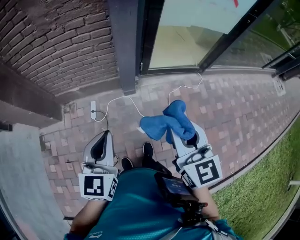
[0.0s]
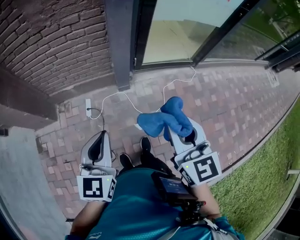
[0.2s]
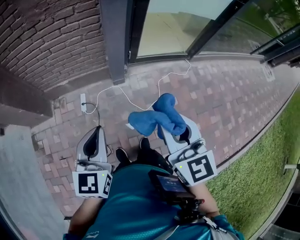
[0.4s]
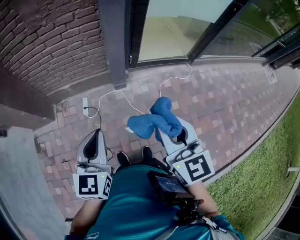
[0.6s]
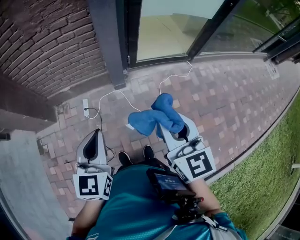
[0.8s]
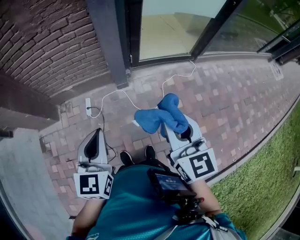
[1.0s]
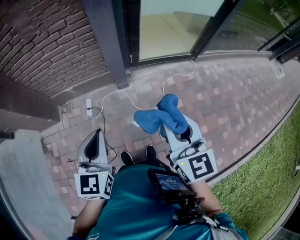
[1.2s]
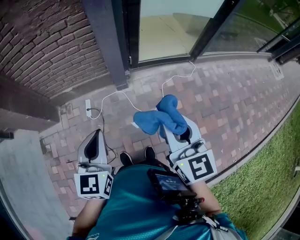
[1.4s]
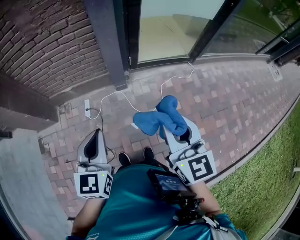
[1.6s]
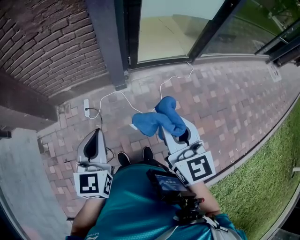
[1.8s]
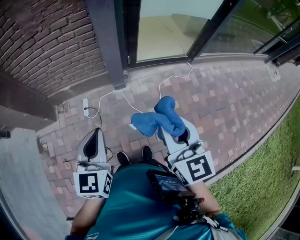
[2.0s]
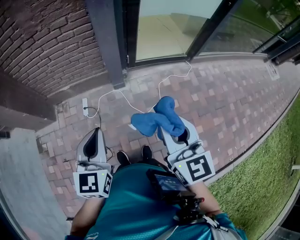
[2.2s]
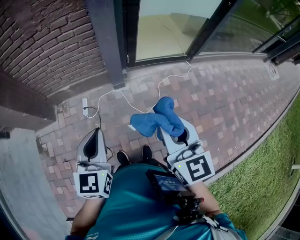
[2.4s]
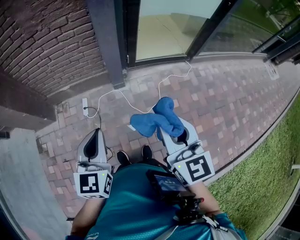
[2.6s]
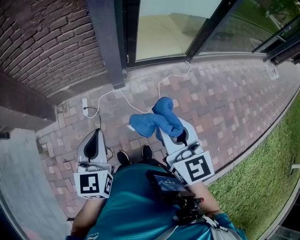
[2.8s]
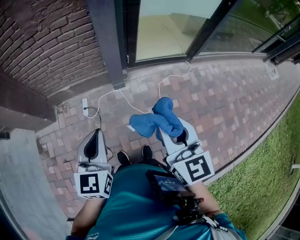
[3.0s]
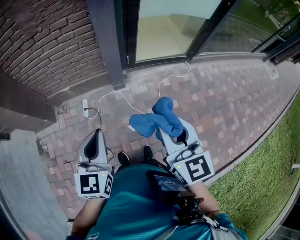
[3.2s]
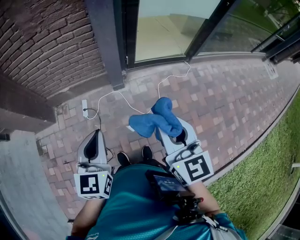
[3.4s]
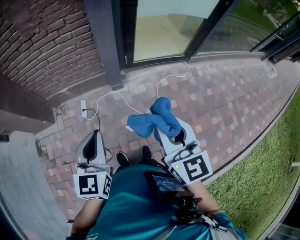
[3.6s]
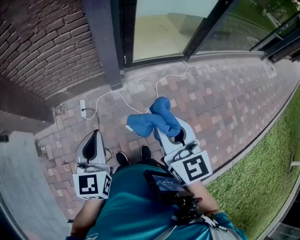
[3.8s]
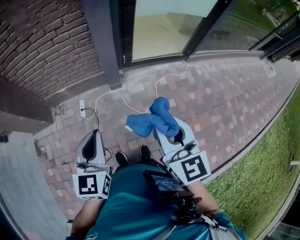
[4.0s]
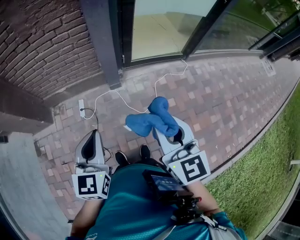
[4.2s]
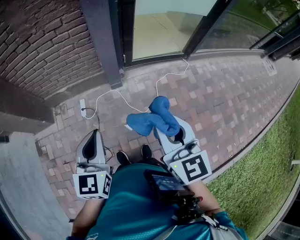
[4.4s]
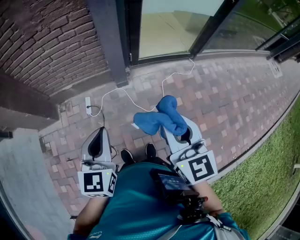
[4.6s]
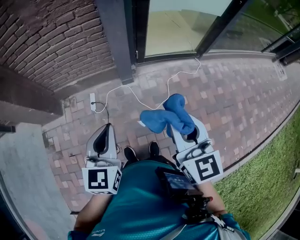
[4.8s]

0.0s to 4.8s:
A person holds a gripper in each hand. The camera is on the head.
0.0s to 1.6s: The right gripper shifts some 5 cm backward. Meanwhile the left gripper moves roughly 5 cm.
1.6s to 4.8s: The grippers make only small movements.

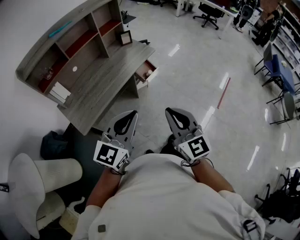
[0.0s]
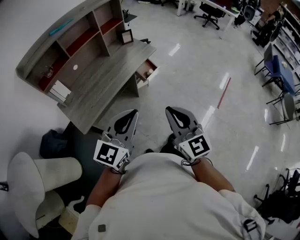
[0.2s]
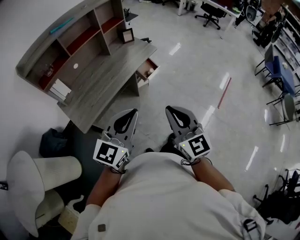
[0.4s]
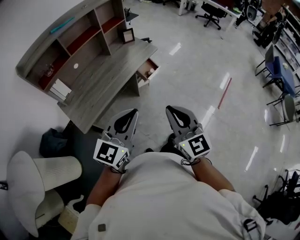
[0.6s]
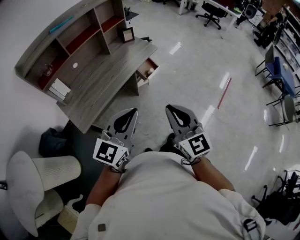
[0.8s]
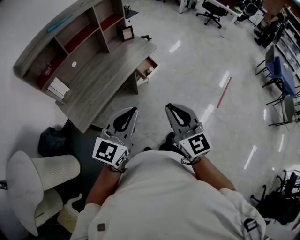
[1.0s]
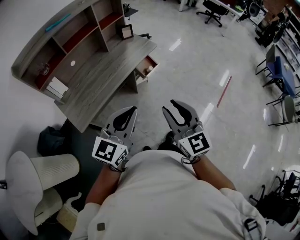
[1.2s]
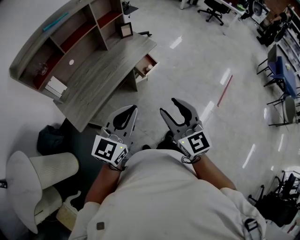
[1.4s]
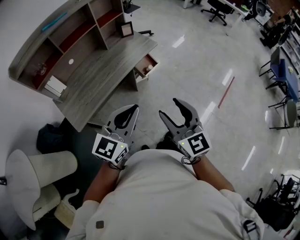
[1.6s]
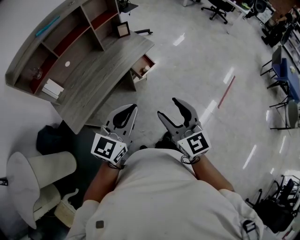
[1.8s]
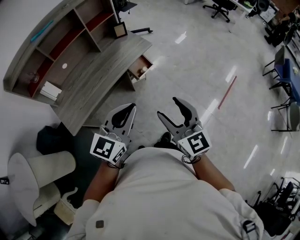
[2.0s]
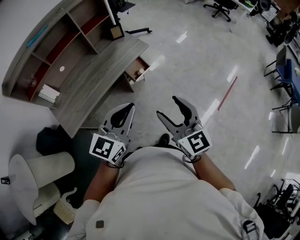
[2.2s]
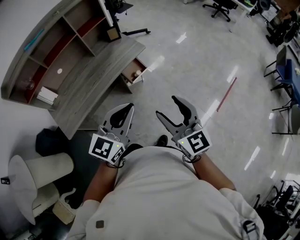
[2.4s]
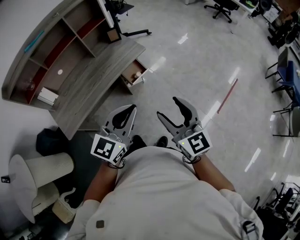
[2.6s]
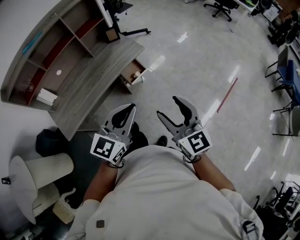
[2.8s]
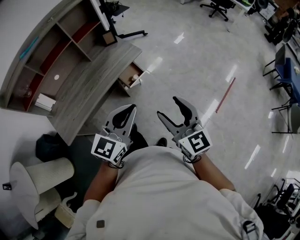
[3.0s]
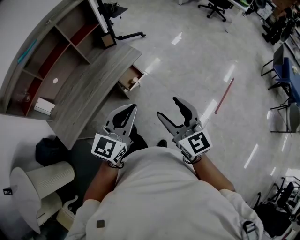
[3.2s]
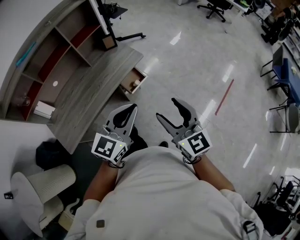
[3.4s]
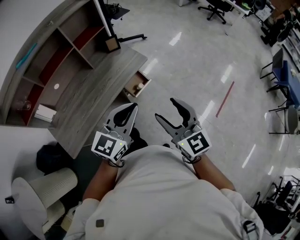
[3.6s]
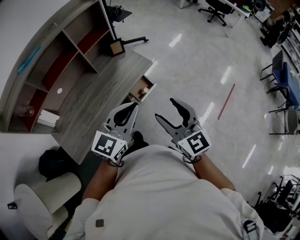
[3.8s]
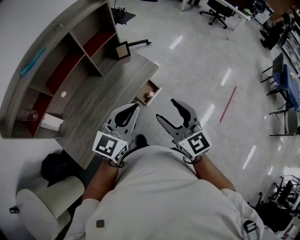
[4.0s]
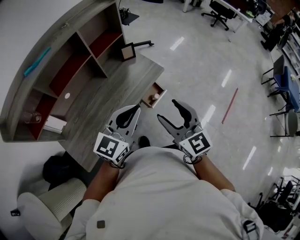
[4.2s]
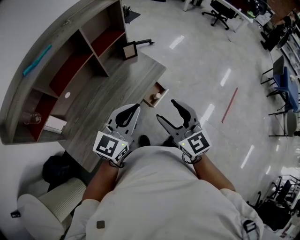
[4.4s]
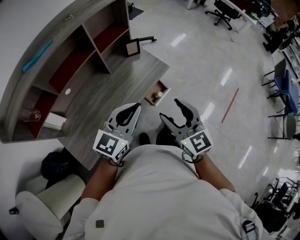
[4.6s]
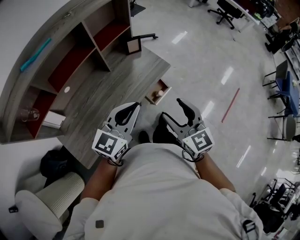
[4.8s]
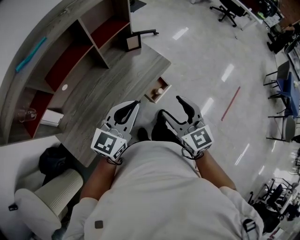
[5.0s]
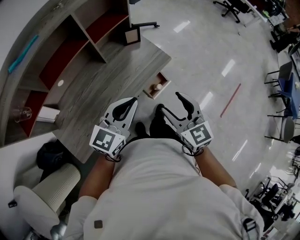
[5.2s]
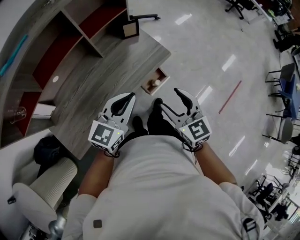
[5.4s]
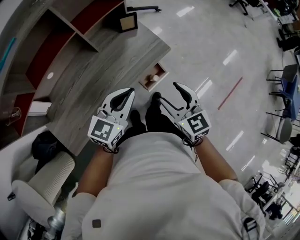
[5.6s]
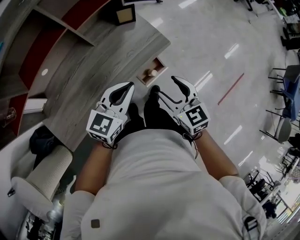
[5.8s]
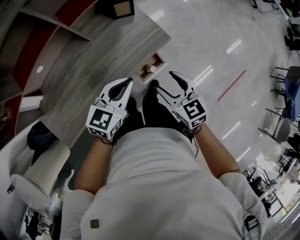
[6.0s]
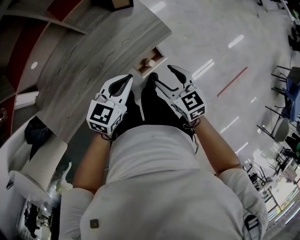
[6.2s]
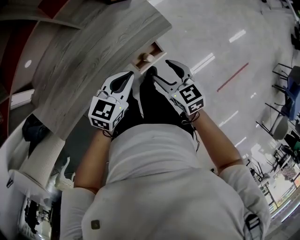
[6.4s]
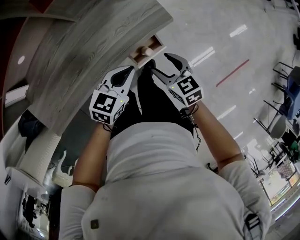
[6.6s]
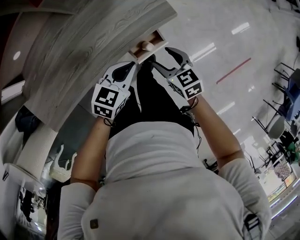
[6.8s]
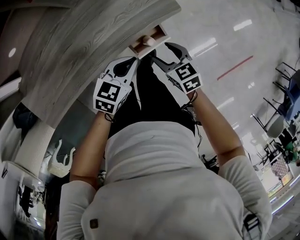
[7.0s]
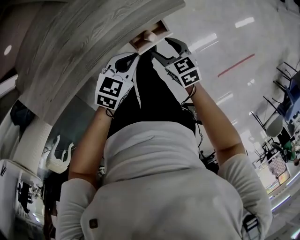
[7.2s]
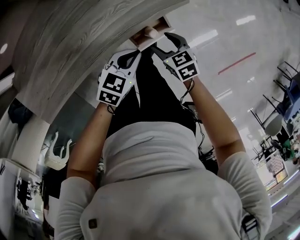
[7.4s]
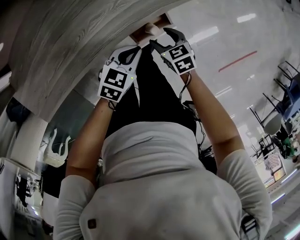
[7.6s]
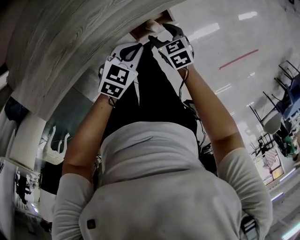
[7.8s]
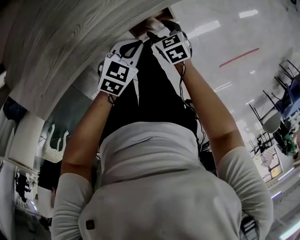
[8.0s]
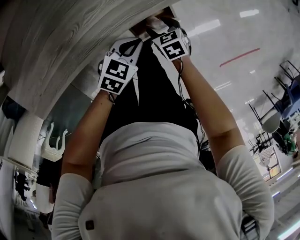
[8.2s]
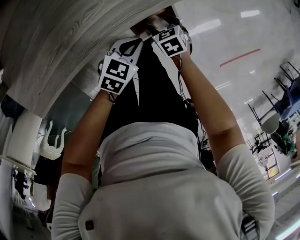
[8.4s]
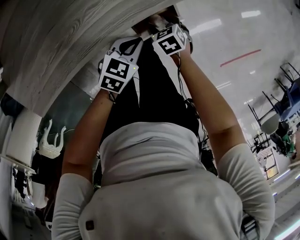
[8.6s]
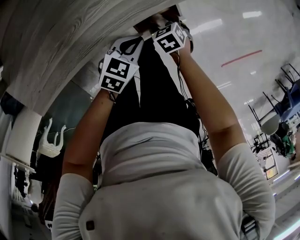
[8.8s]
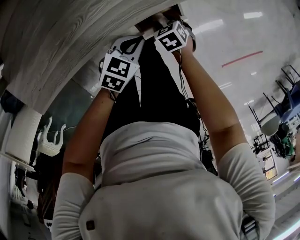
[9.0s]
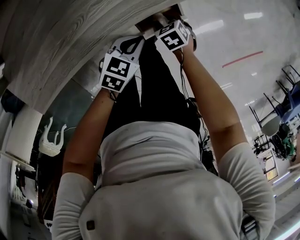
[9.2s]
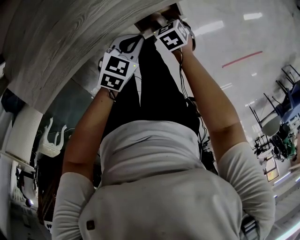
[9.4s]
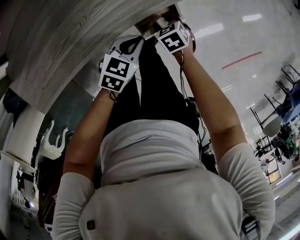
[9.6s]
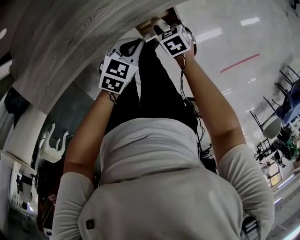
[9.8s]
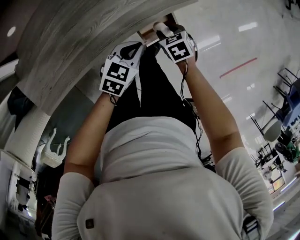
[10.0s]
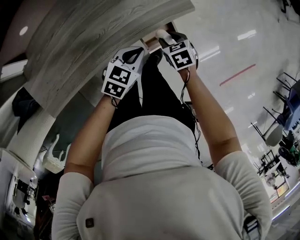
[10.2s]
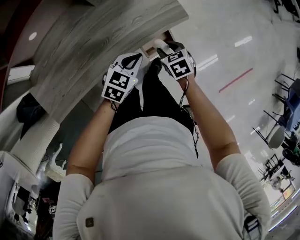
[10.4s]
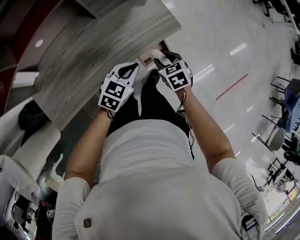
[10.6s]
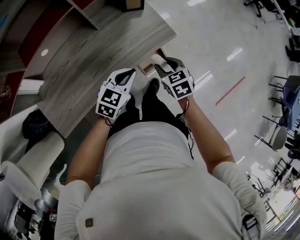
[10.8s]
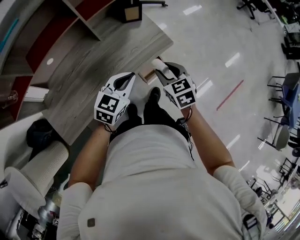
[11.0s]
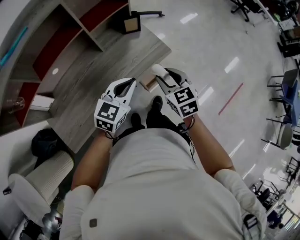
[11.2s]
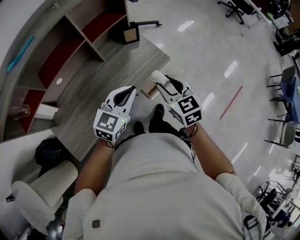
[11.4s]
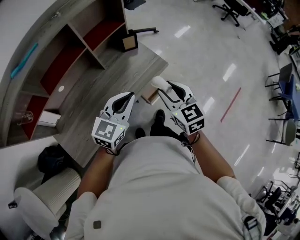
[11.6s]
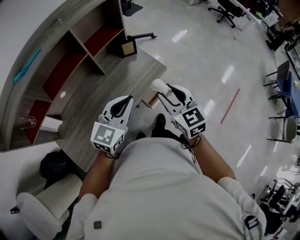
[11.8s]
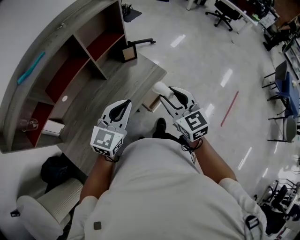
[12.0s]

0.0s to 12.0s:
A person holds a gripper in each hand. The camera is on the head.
0.0s to 1.6s: The two grippers go about 10 cm forward. The right gripper opens its fingers.
1.6s to 3.0s: Both grippers move to the right and forward, about 20 cm.
3.0s to 4.4s: The two grippers go roughly 30 cm to the left and forward.
4.4s to 6.0s: The grippers both shift downward and forward by some 25 cm. The left gripper rotates approximately 20 degrees, while the right gripper changes its angle by some 30 degrees.
6.0s to 7.6s: Both grippers travel together downward, approximately 30 cm. The left gripper changes its angle by approximately 20 degrees; the right gripper swivels some 30 degrees.
7.6s to 9.0s: The left gripper travels downward by roughly 5 cm. The right gripper goes approximately 10 cm downward, and turns by about 20 degrees.
9.0s to 10.4s: Both grippers travel together upward, approximately 20 cm.
10.4s to 12.0s: Both grippers travel together upward, about 35 cm. The left gripper swivels approximately 30 degrees. Meanwhile the right gripper tips its fingers upward by roughly 40 degrees.

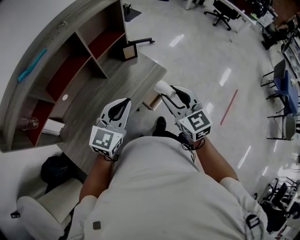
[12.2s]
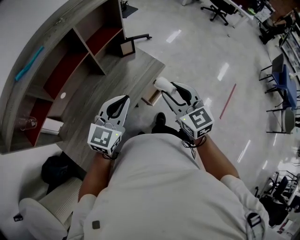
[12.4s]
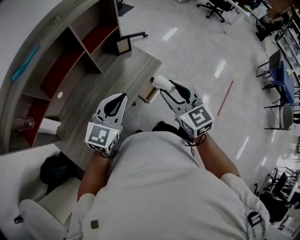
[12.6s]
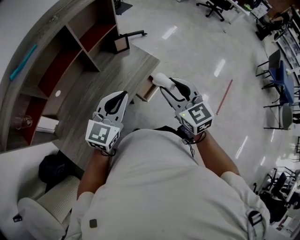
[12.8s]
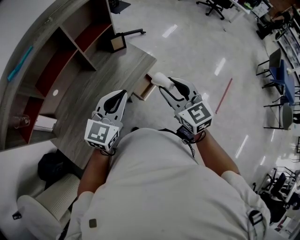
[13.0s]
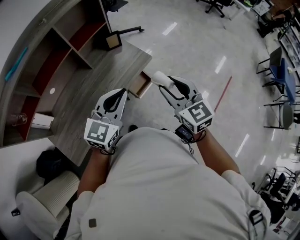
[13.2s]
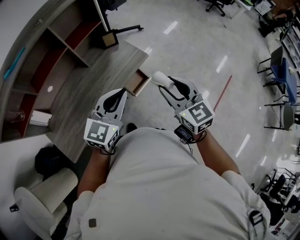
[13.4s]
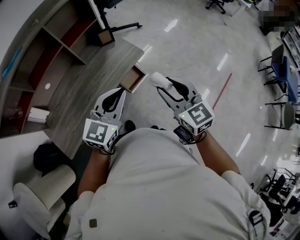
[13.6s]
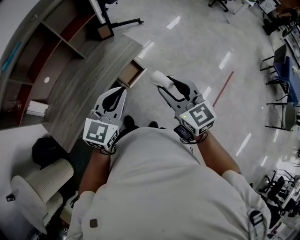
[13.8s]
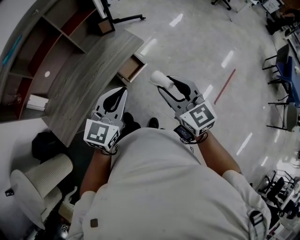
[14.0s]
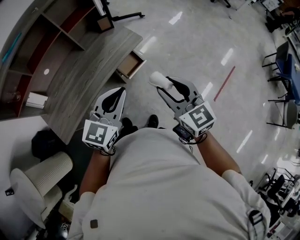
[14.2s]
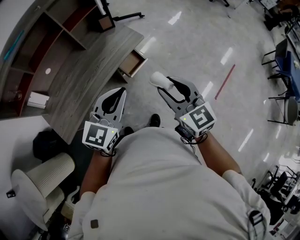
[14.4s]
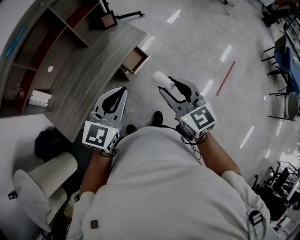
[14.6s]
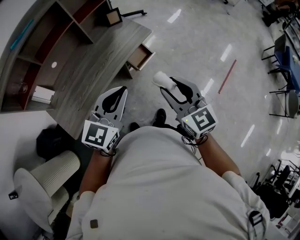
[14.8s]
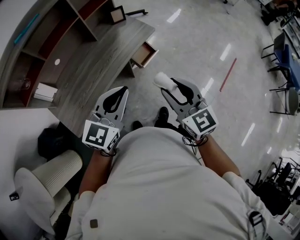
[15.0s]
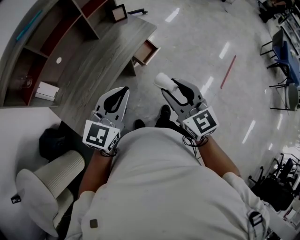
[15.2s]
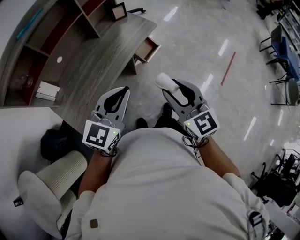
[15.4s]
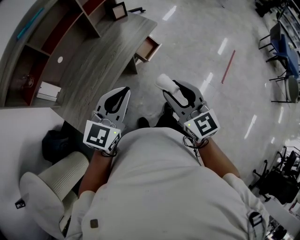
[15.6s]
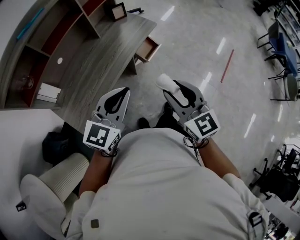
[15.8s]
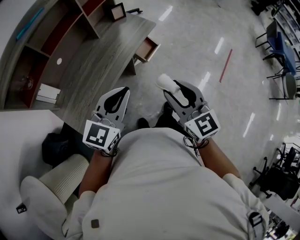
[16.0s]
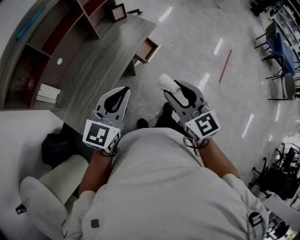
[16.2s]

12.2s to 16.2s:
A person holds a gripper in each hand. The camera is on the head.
12.2s to 13.6s: The right gripper travels to the right and backward by some 15 cm. Meanwhile the left gripper moves to the right, roughly 15 cm.
13.6s to 14.8s: Both grippers travel together backward and to the left, about 15 cm.
14.8s to 16.2s: The two grippers go some 15 cm to the left and backward.

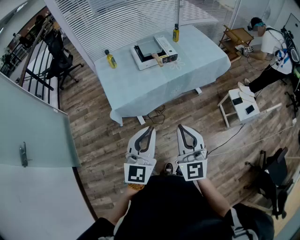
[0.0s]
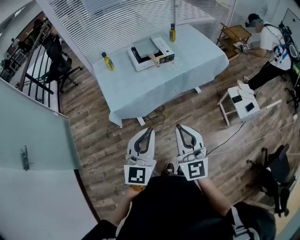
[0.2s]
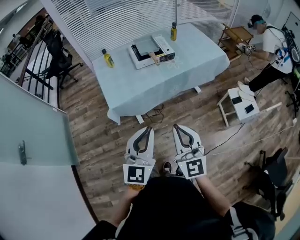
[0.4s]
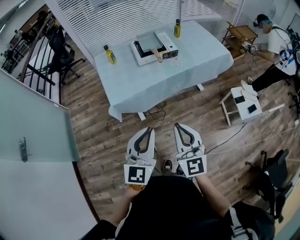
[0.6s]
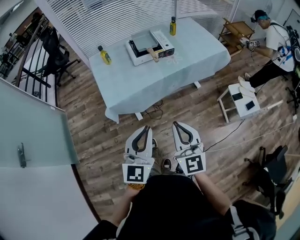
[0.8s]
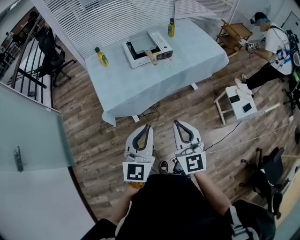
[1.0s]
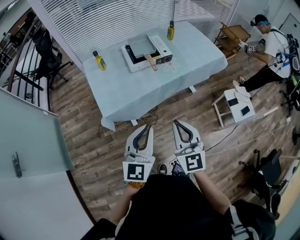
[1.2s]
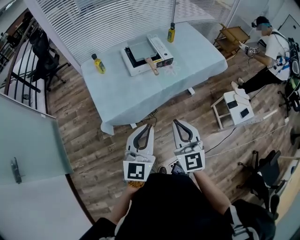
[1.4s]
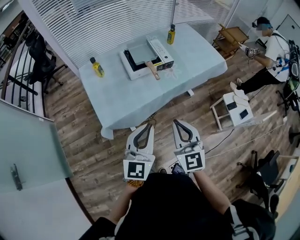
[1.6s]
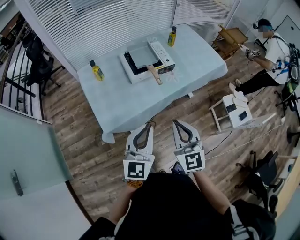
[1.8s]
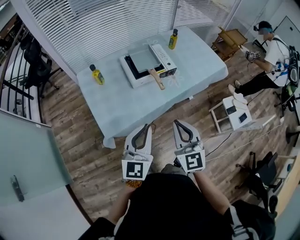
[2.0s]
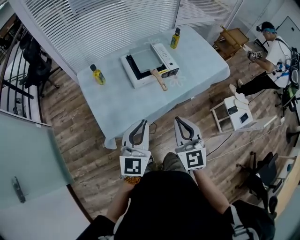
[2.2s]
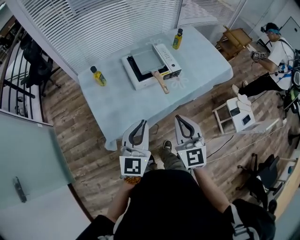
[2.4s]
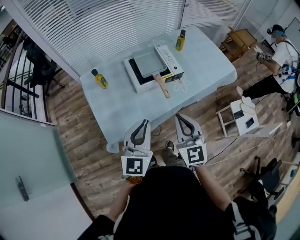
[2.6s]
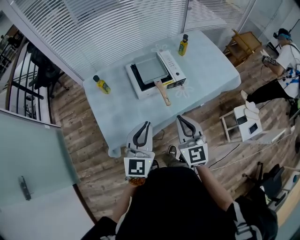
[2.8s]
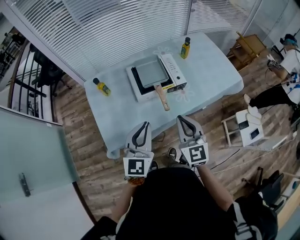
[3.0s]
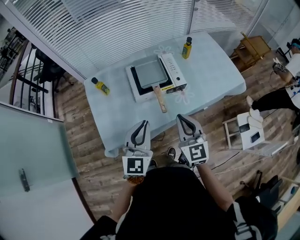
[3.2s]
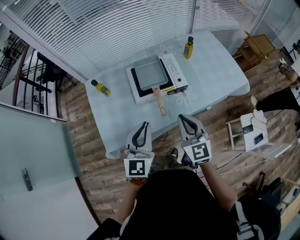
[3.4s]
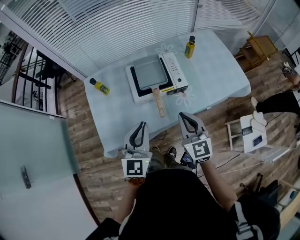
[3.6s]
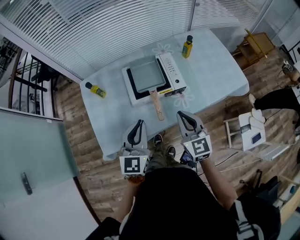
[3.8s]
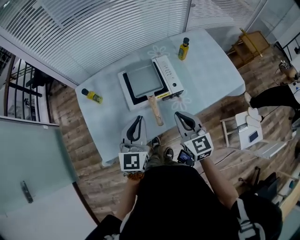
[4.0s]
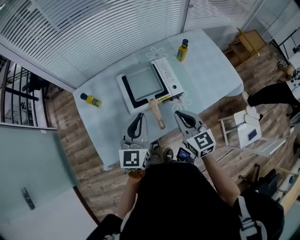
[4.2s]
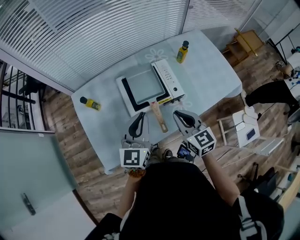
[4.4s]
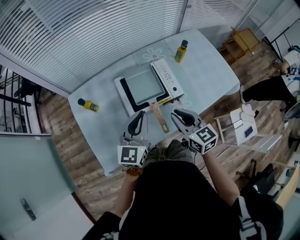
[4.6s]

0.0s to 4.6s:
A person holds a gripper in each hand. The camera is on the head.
0.0s to 1.6s: Both grippers travel together forward, roughly 15 cm.
1.6s to 3.0s: Both grippers move forward, about 20 cm.
3.0s to 4.6s: The two grippers go about 15 cm forward. The right gripper turns by about 20 degrees.
